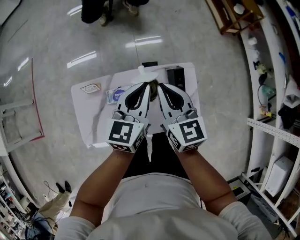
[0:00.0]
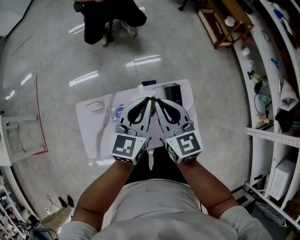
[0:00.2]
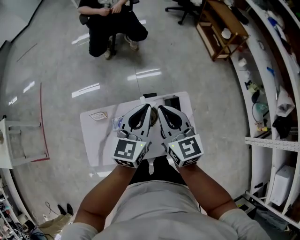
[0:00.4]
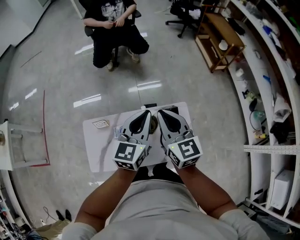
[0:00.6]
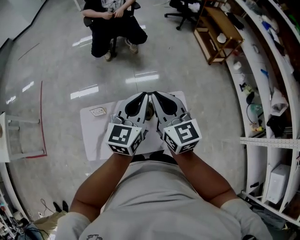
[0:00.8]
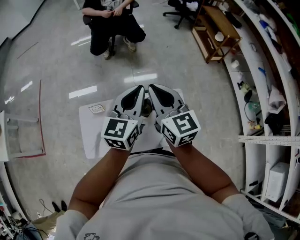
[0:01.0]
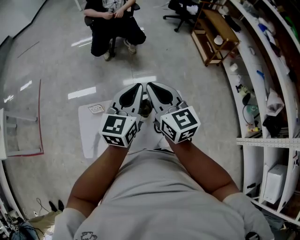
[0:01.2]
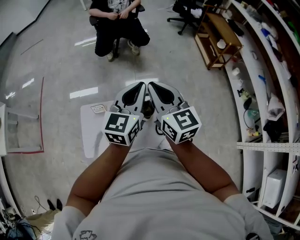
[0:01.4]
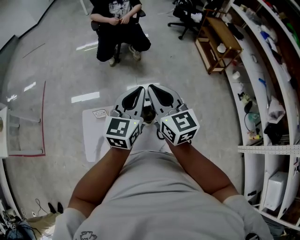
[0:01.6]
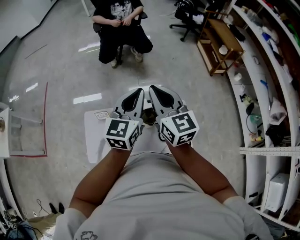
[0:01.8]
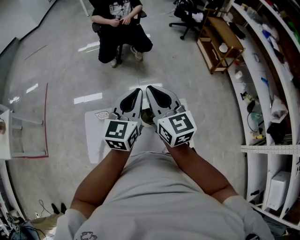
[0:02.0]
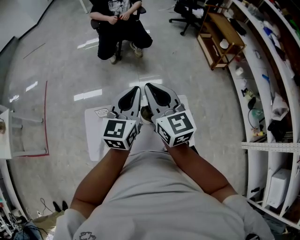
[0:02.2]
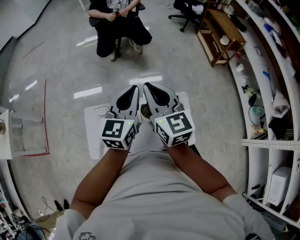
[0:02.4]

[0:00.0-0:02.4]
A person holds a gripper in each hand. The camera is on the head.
0:00.0 to 0:01.2: Both grippers move upward, some 20 cm.
0:01.2 to 0:02.4: The grippers make only small movements.

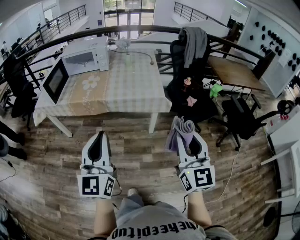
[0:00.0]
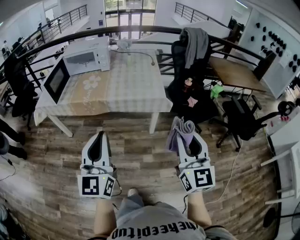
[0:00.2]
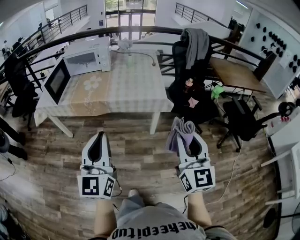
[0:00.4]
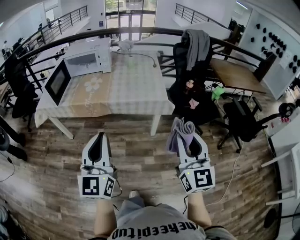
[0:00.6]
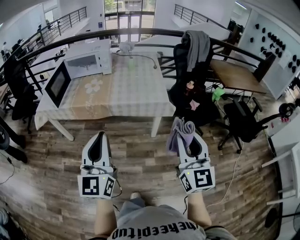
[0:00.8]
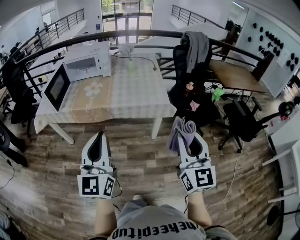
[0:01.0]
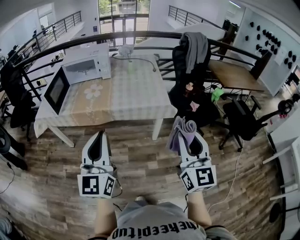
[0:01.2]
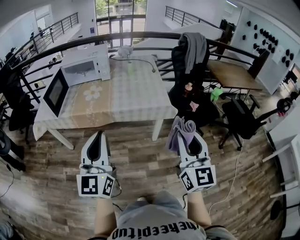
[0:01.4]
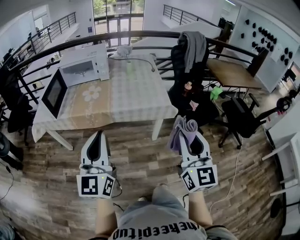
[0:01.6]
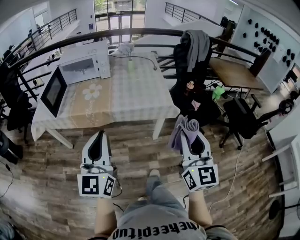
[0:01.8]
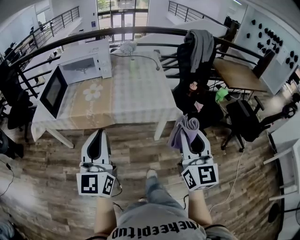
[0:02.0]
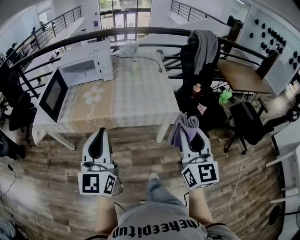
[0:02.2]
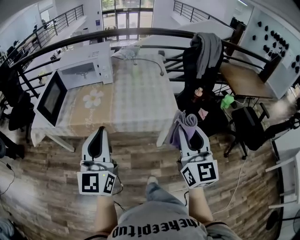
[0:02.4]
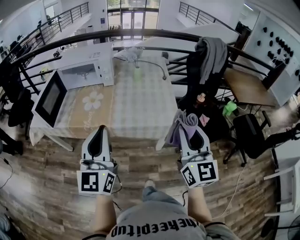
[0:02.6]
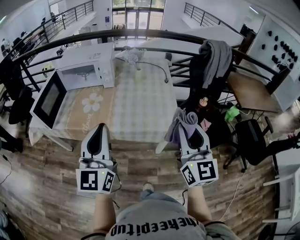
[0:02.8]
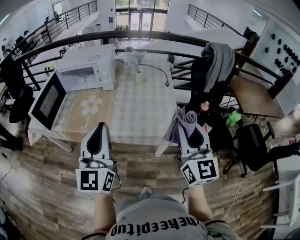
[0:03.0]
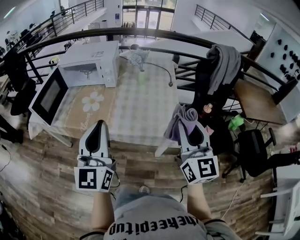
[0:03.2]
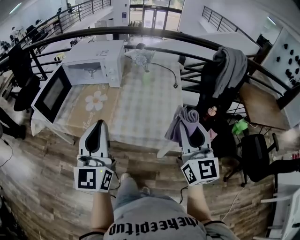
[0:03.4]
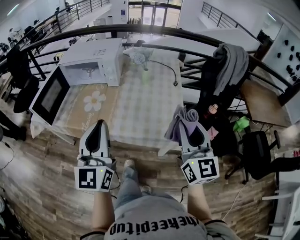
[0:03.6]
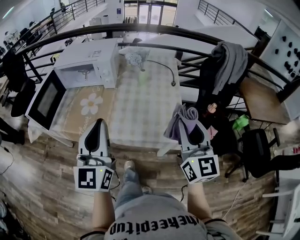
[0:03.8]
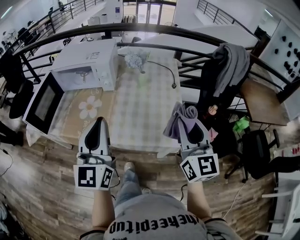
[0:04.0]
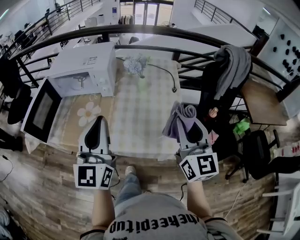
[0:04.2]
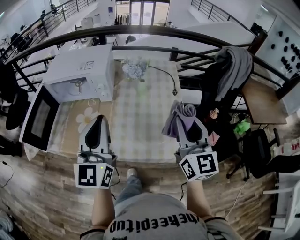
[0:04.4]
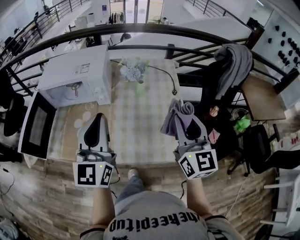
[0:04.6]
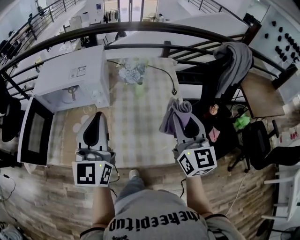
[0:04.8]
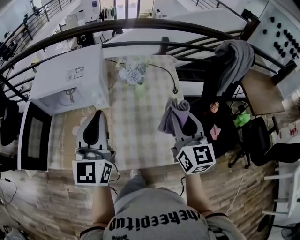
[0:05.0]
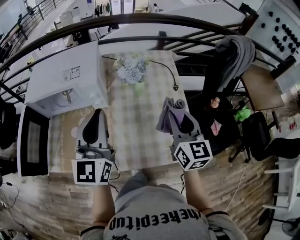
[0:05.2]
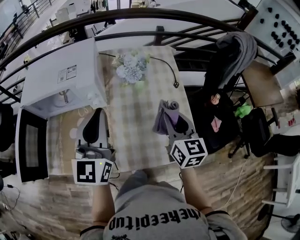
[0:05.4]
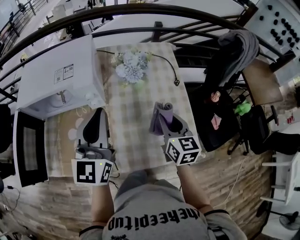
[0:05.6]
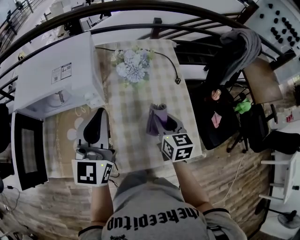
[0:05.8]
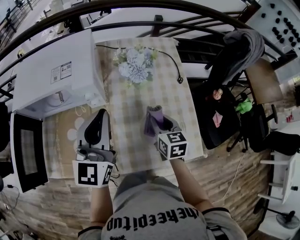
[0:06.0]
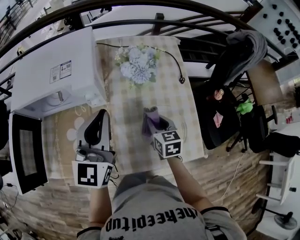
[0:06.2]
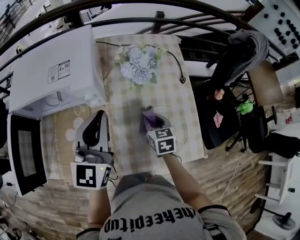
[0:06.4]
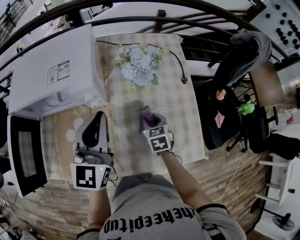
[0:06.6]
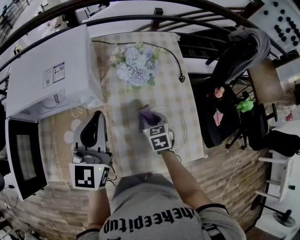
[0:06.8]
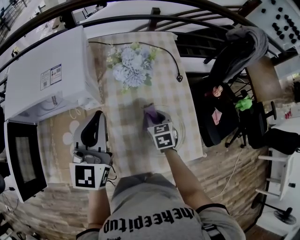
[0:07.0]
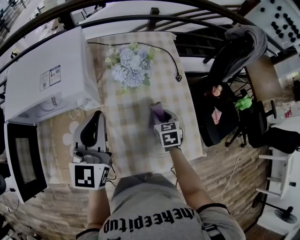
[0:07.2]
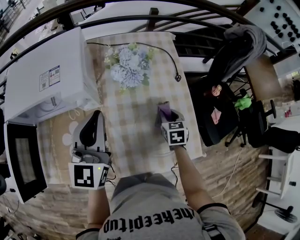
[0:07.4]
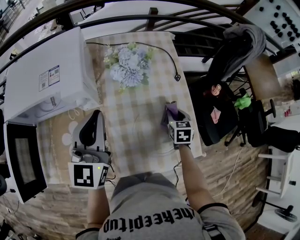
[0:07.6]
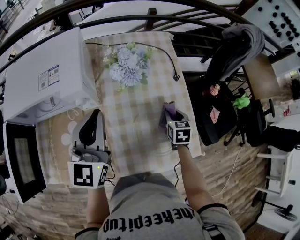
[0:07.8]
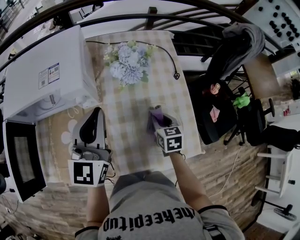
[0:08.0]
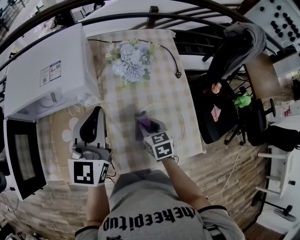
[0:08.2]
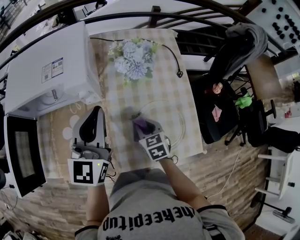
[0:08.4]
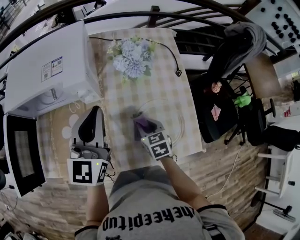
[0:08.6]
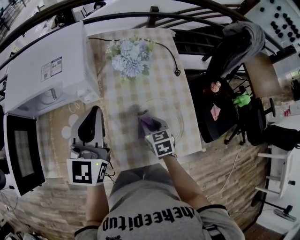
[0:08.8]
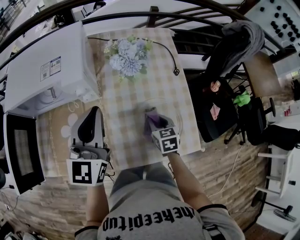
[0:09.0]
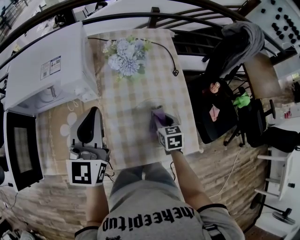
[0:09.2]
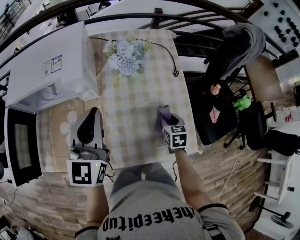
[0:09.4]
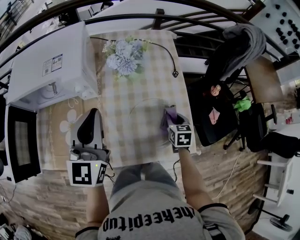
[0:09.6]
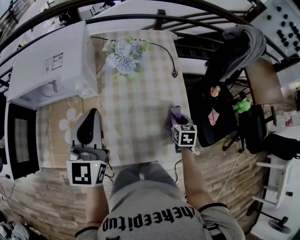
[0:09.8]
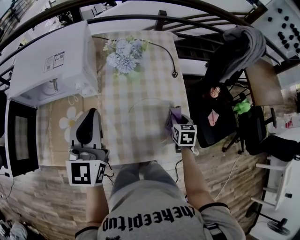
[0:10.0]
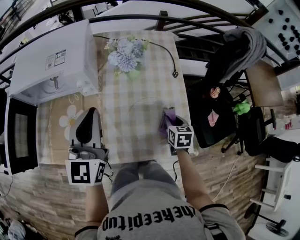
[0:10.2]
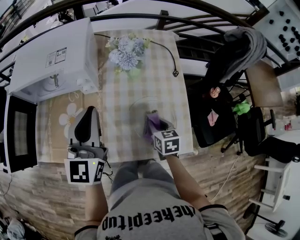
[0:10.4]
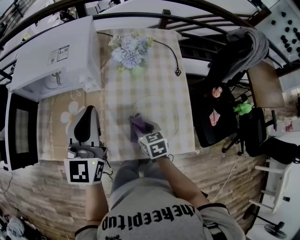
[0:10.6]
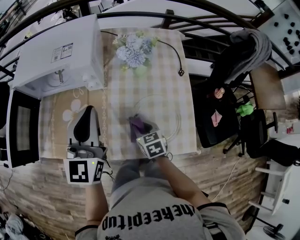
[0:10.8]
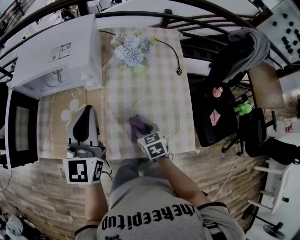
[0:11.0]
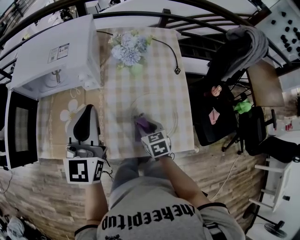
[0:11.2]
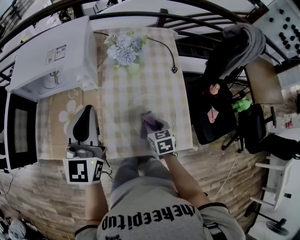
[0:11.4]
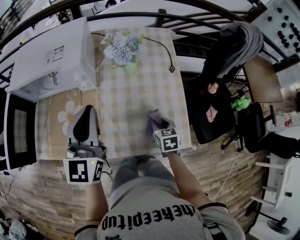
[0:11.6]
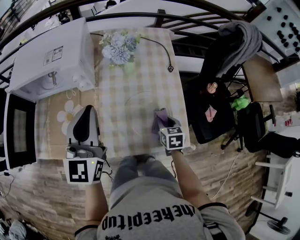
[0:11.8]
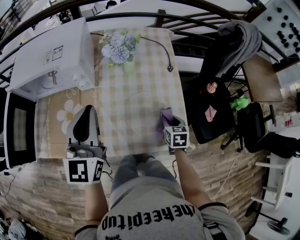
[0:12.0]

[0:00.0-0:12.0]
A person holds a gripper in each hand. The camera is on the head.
0:00.0 to 0:01.6: Both grippers travel together to the left and forward, approximately 10 cm.
0:01.6 to 0:03.0: Both grippers travel together forward, roughly 25 cm.
0:03.0 to 0:04.4: The two grippers go about 20 cm forward.
0:04.4 to 0:06.0: The right gripper is displaced downward and forward by roughly 30 cm, and tips its fingers downward by roughly 40 degrees; the left gripper shifts roughly 20 cm forward and downward.
0:06.0 to 0:07.6: The right gripper moves to the right and downward, roughly 15 cm, and rotates some 20 degrees.
0:07.6 to 0:09.0: The right gripper shifts about 10 cm to the left and backward.
0:09.0 to 0:10.4: The right gripper moves some 15 cm to the right and comes back.
0:10.4 to 0:12.0: The right gripper moves to the right, some 10 cm.

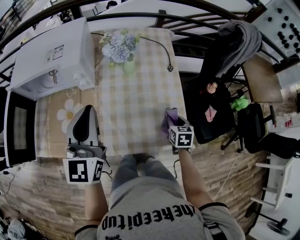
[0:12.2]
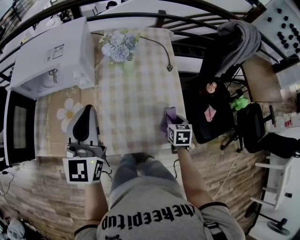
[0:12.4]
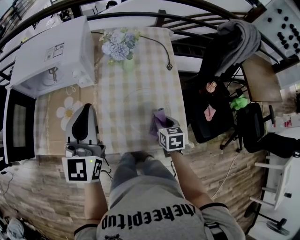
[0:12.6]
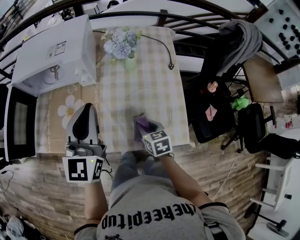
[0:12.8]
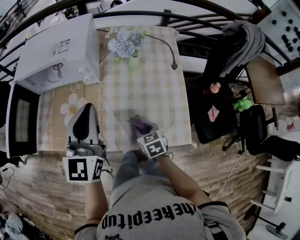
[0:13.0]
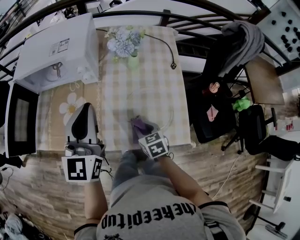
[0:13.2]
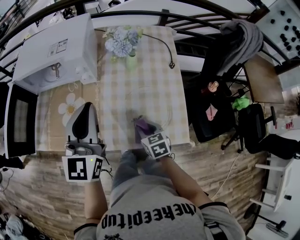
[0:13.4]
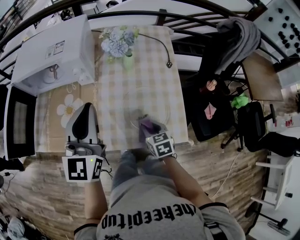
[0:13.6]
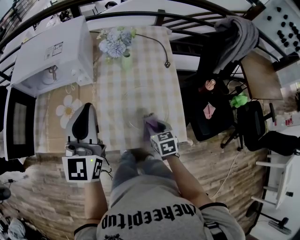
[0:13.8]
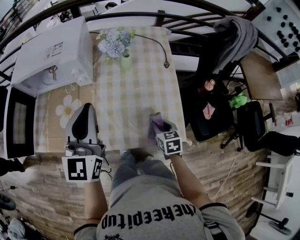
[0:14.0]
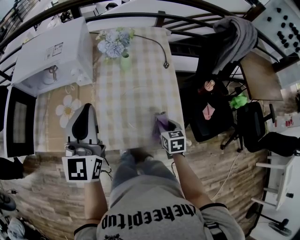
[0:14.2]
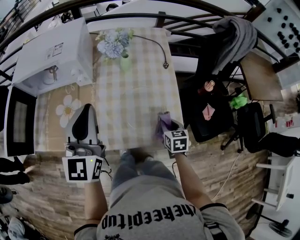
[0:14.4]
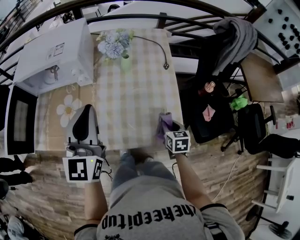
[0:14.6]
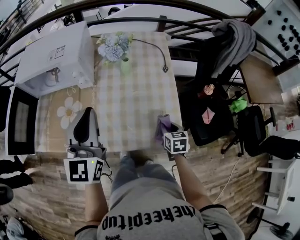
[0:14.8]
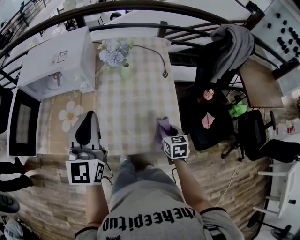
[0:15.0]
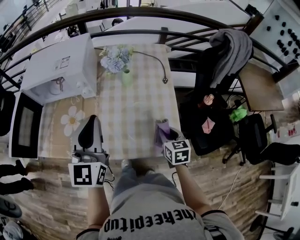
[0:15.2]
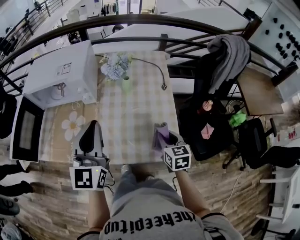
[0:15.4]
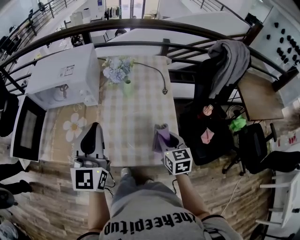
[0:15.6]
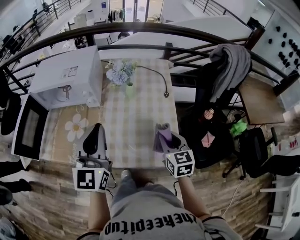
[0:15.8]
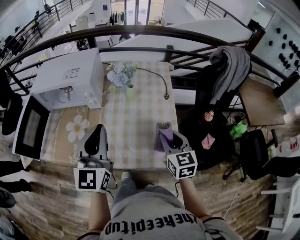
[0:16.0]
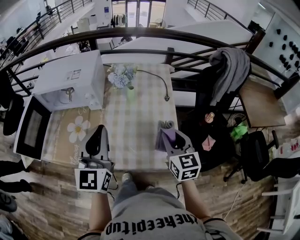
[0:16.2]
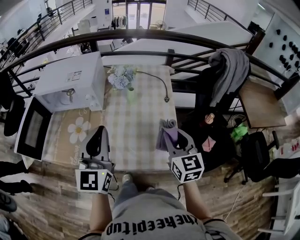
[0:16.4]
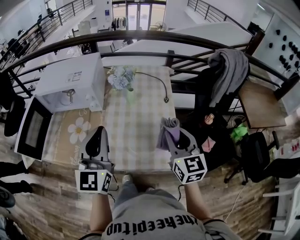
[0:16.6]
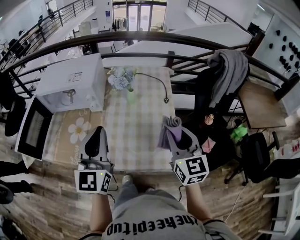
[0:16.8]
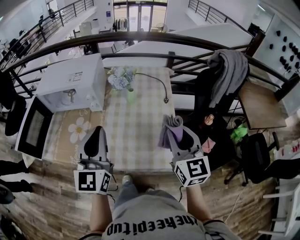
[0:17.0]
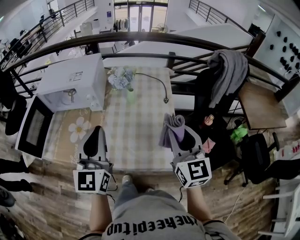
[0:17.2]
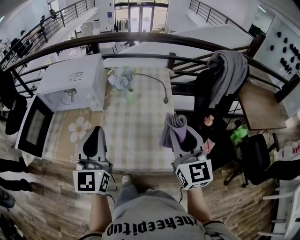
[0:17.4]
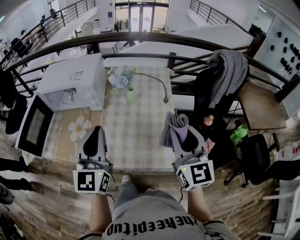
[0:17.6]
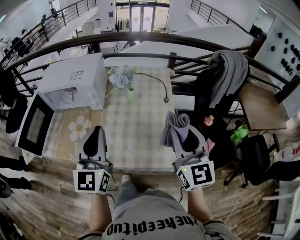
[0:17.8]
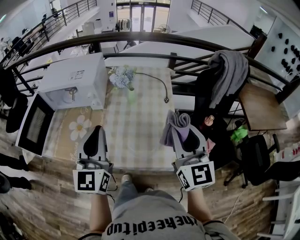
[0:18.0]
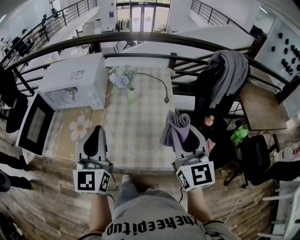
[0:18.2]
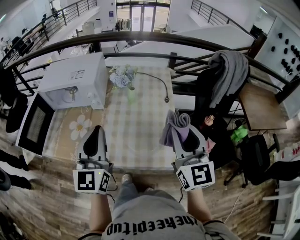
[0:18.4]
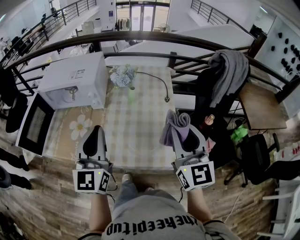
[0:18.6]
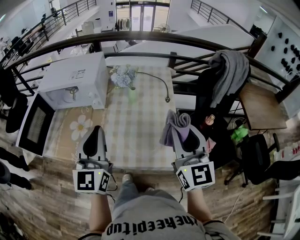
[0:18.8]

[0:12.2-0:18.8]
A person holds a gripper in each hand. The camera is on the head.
0:12.2 to 0:13.8: The right gripper shifts some 10 cm to the left.
0:13.8 to 0:15.4: The right gripper travels upward and to the right by some 10 cm.
0:15.4 to 0:17.2: The left gripper changes place by some 5 cm; the right gripper travels upward by about 20 cm, and points its fingers approximately 30 degrees further upward.
0:17.2 to 0:18.8: The grippers move only a little.

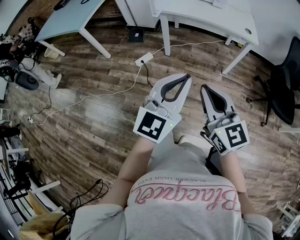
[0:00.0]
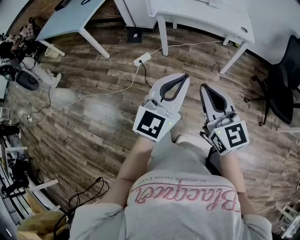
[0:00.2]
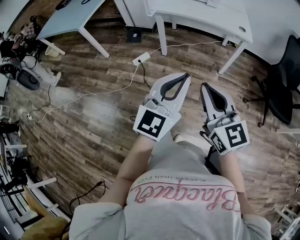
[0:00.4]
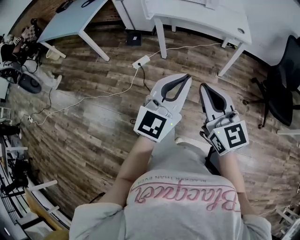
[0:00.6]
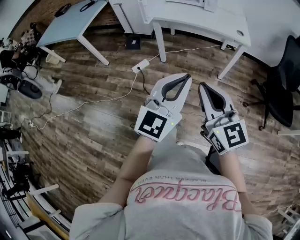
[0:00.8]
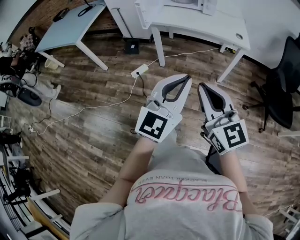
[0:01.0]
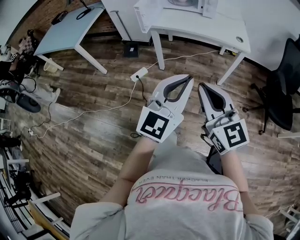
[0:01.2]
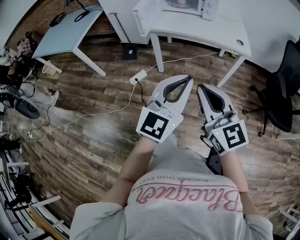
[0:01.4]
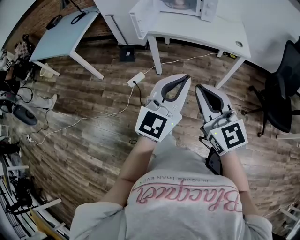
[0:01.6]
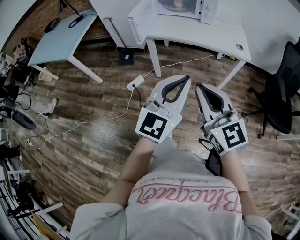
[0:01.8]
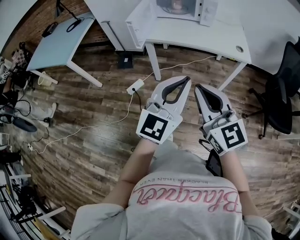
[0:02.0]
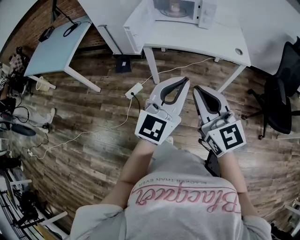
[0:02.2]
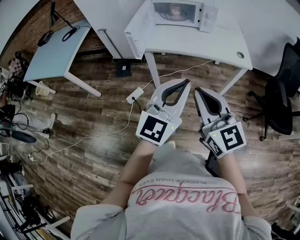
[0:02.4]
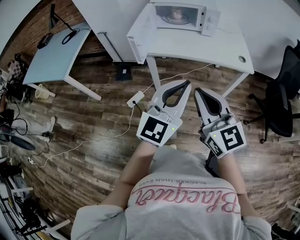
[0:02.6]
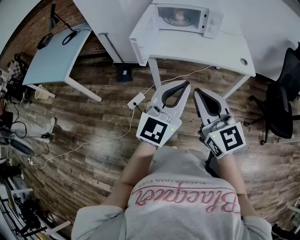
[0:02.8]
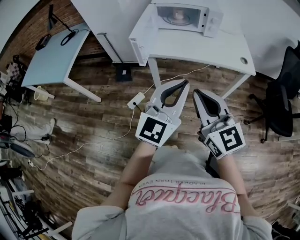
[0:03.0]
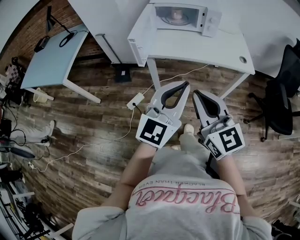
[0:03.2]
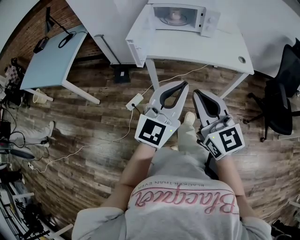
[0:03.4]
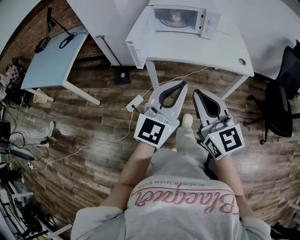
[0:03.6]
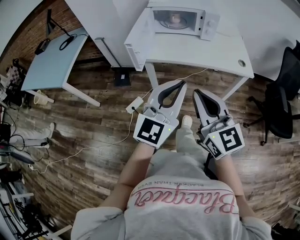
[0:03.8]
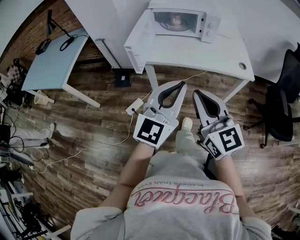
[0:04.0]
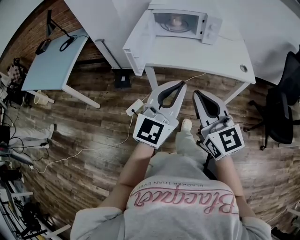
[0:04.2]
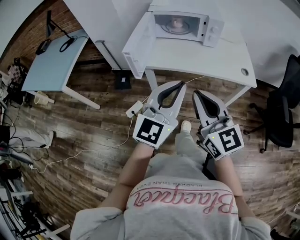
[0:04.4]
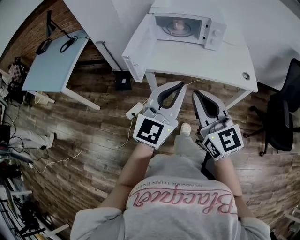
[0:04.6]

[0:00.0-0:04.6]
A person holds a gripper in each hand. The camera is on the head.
0:00.0 to 0:01.6: The right gripper shifts some 10 cm forward. Meanwhile the left gripper is displaced forward and to the right by roughly 15 cm.
0:01.6 to 0:03.0: The two grippers go roughly 15 cm forward and to the left.
0:03.0 to 0:04.6: The two grippers go approximately 10 cm forward.
